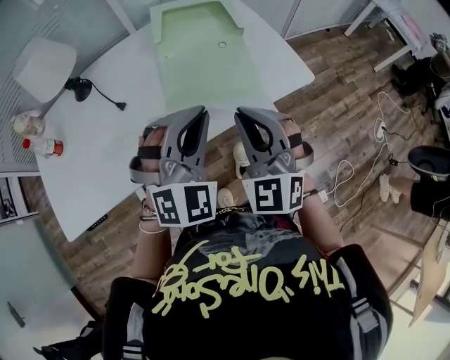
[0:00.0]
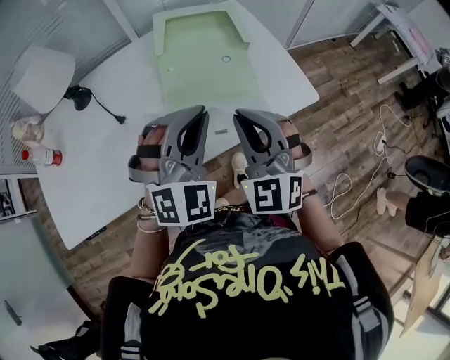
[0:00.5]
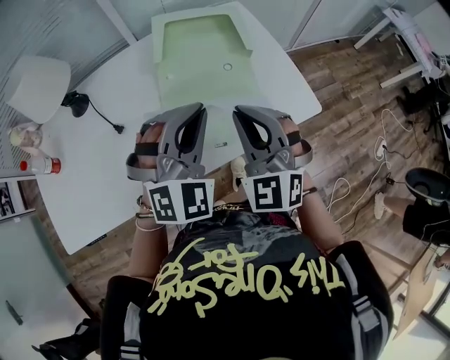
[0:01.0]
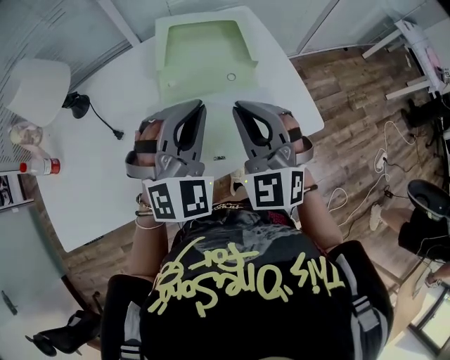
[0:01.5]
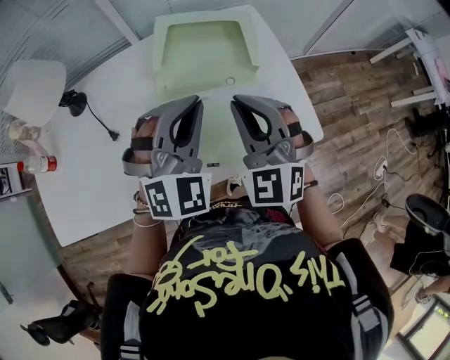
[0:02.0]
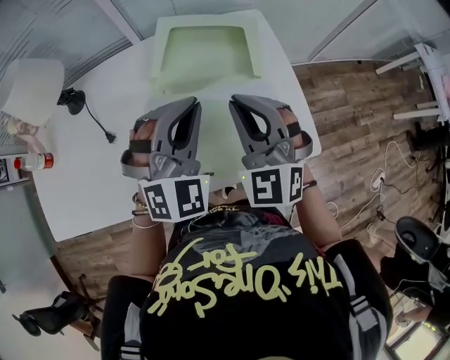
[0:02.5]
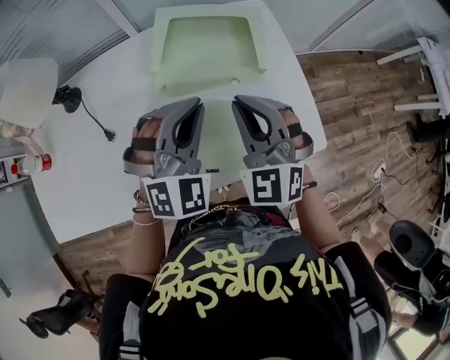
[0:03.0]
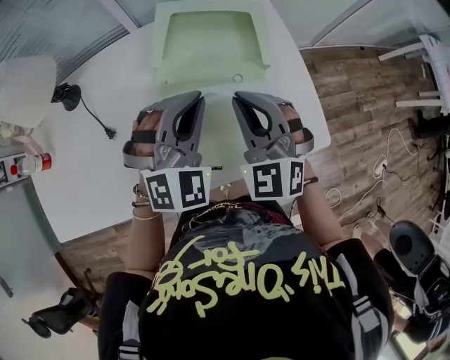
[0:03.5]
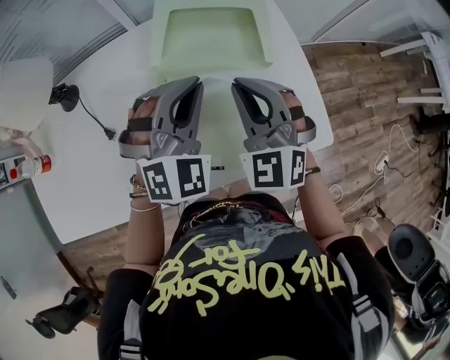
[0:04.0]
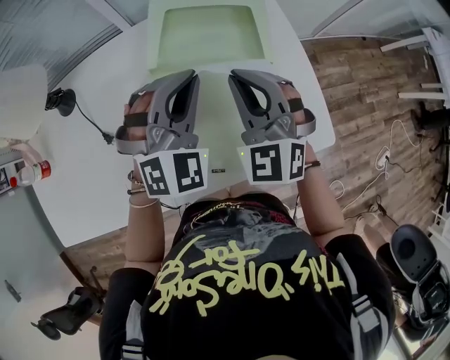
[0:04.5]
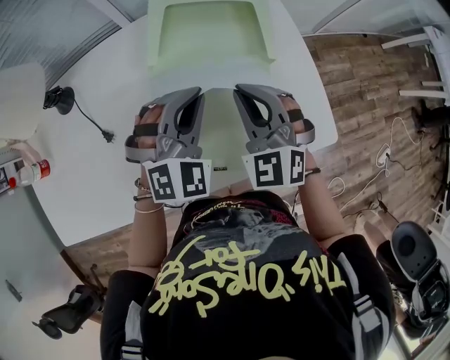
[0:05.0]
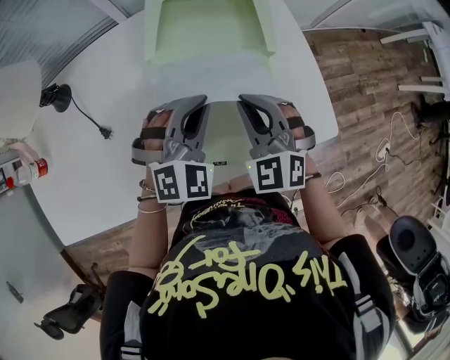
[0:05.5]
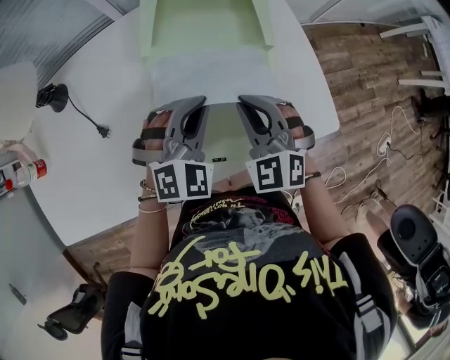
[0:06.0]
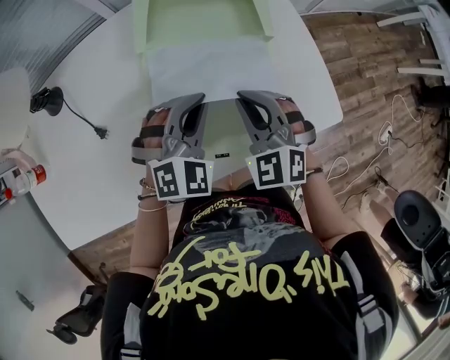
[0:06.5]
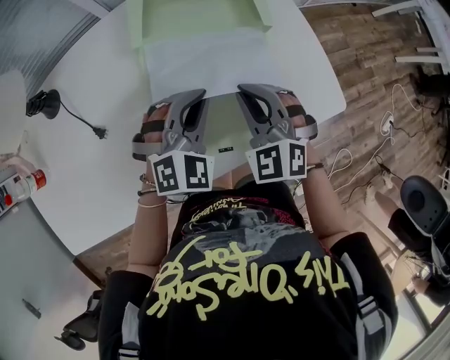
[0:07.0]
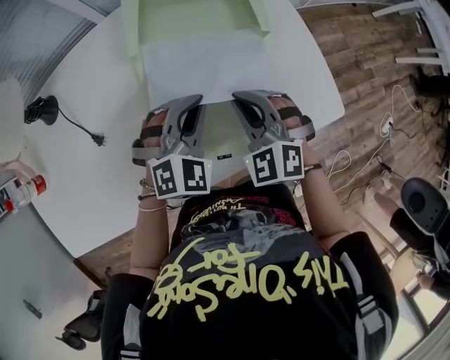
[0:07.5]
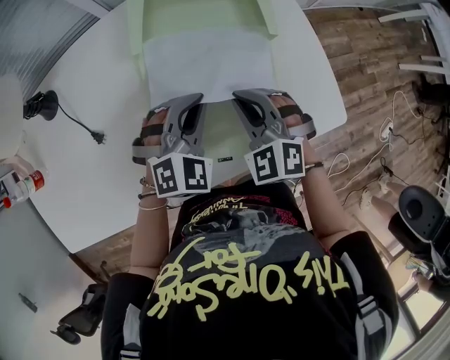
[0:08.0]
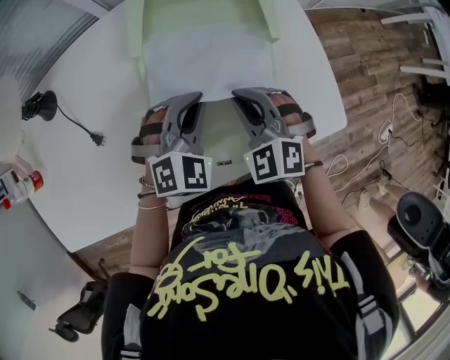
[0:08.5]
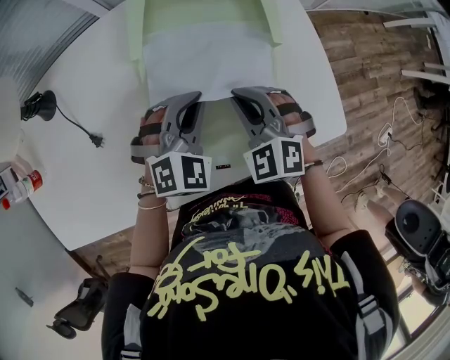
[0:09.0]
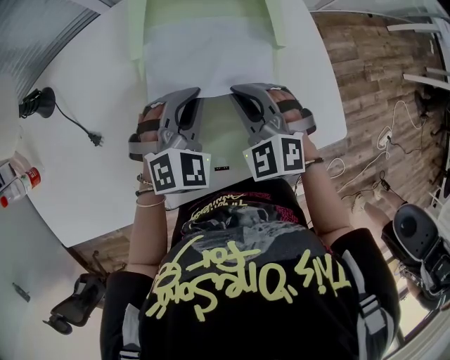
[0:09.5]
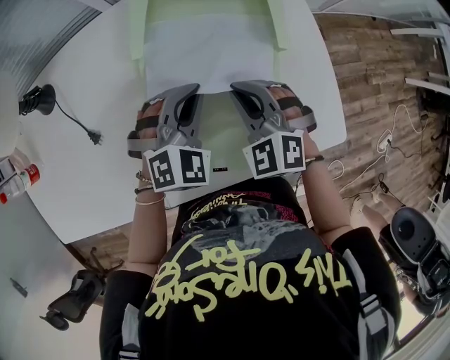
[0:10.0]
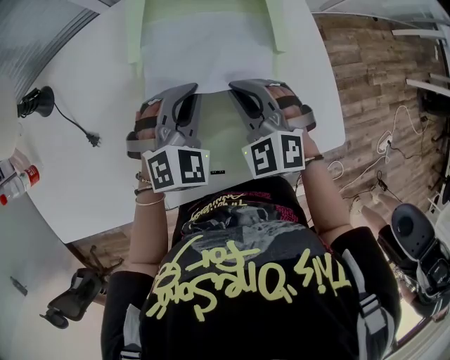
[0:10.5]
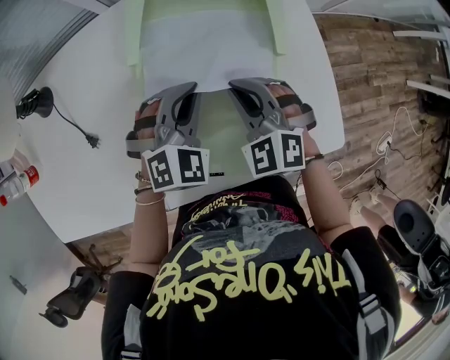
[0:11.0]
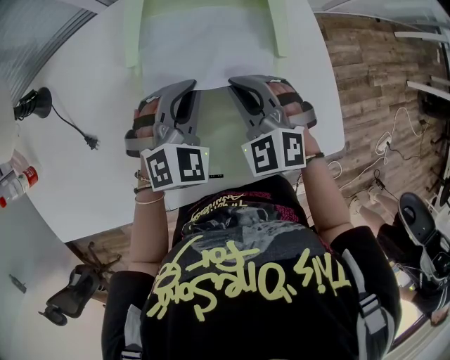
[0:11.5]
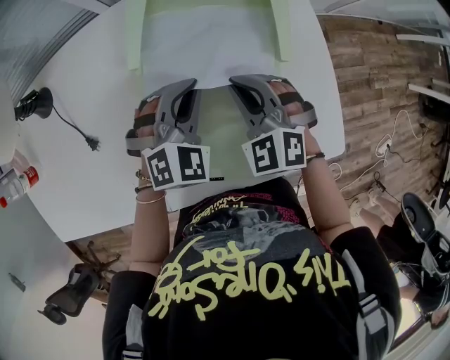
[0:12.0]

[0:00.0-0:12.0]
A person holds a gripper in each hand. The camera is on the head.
0:00.0 to 0:02.0: Both grippers travel together forward, roughly 20 cm.
0:02.0 to 0:04.0: Both grippers move forward, approximately 5 cm.
0:04.0 to 0:06.0: Both grippers travel together downward, roughly 10 cm.
0:06.0 to 0:08.0: The grippers move only a little.
0:08.0 to 0:10.0: The grippers make only small movements.
0:10.0 to 0:12.0: The grippers move only a little.

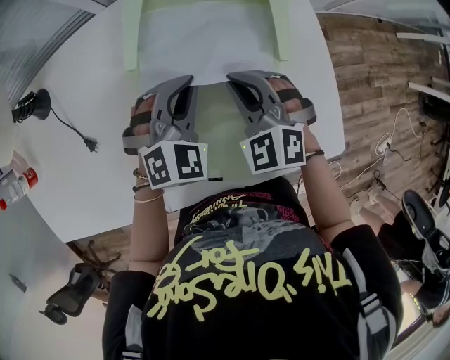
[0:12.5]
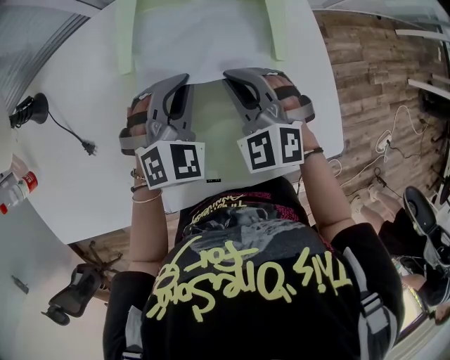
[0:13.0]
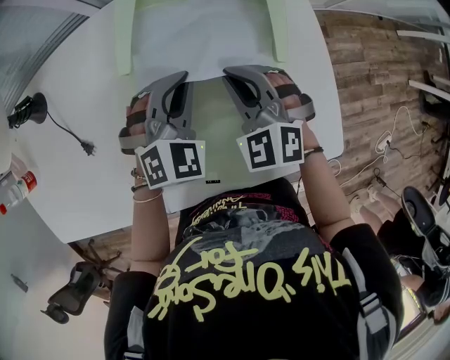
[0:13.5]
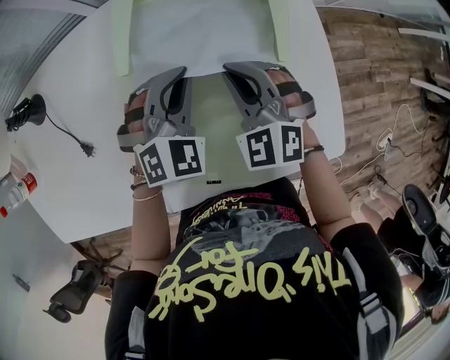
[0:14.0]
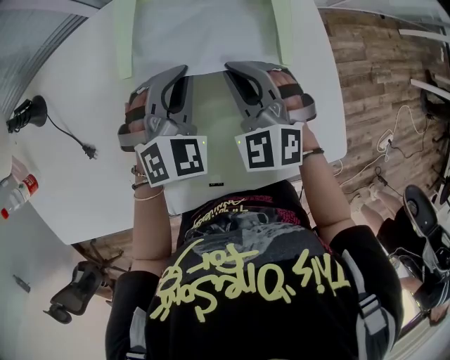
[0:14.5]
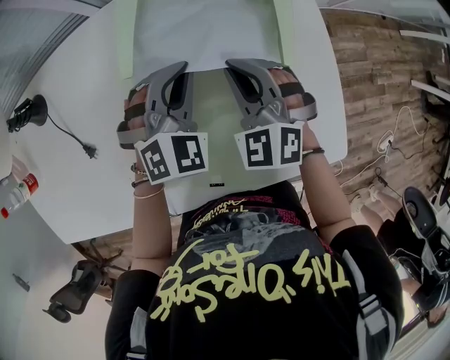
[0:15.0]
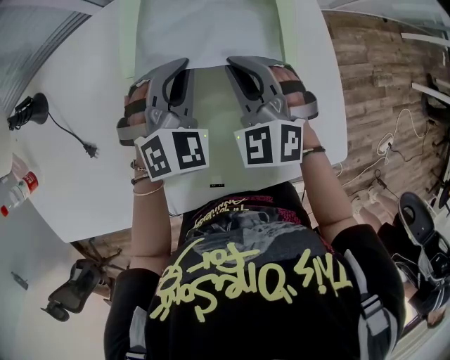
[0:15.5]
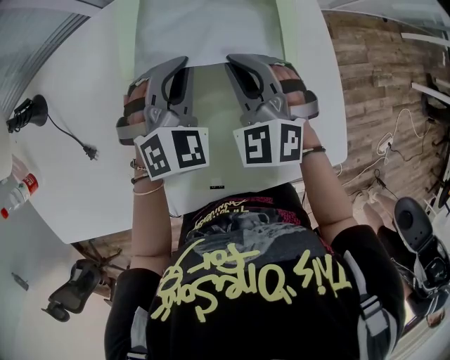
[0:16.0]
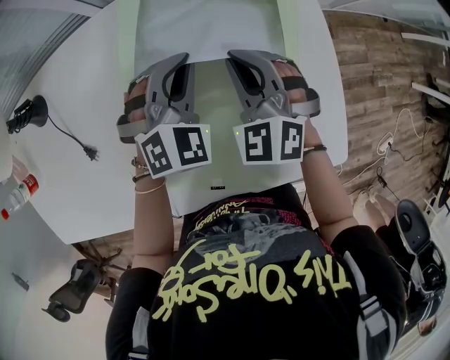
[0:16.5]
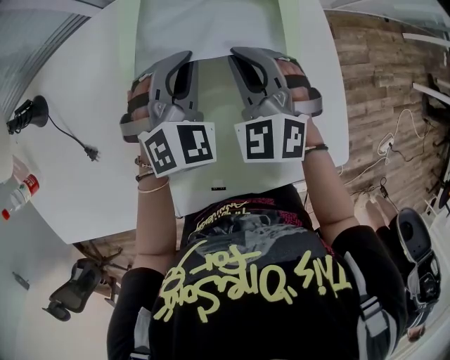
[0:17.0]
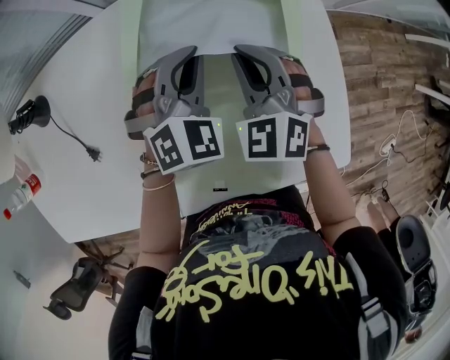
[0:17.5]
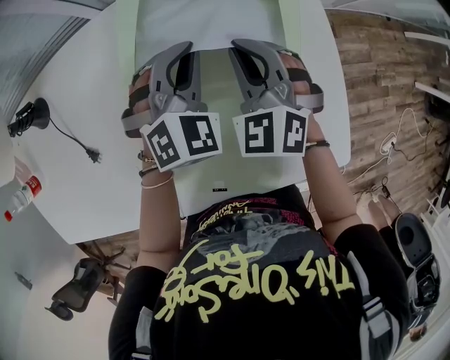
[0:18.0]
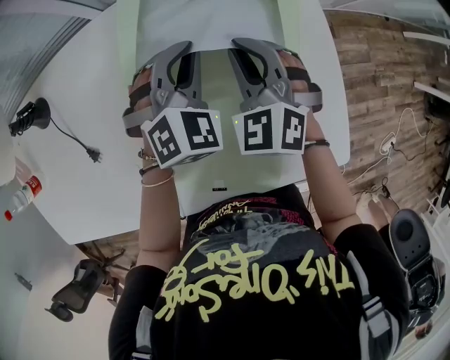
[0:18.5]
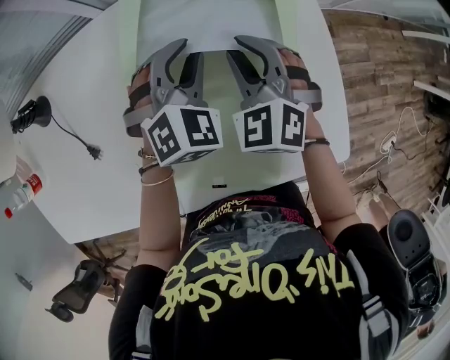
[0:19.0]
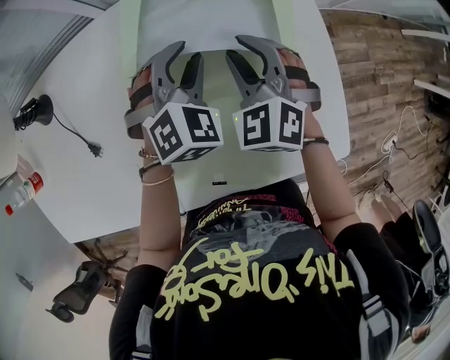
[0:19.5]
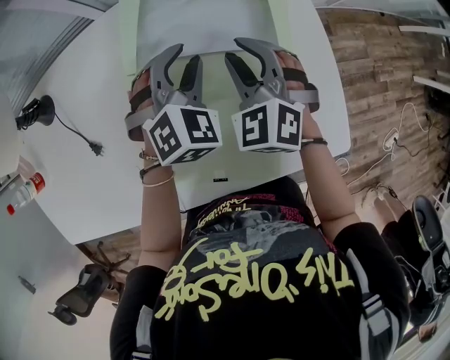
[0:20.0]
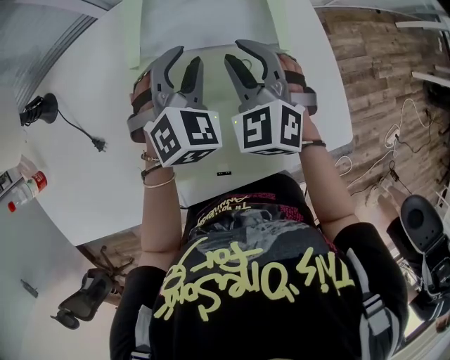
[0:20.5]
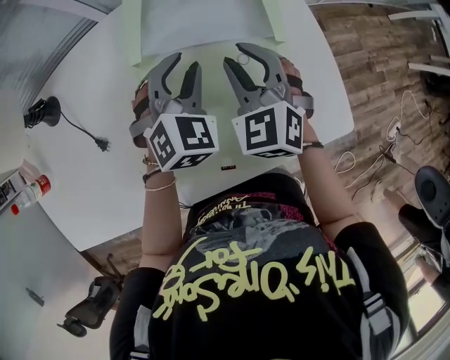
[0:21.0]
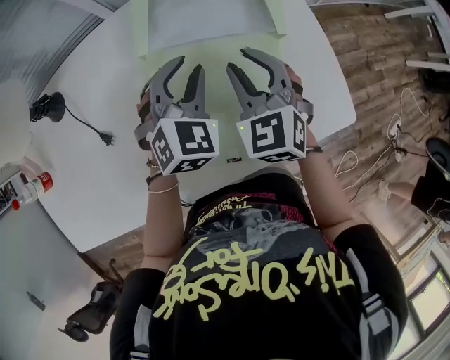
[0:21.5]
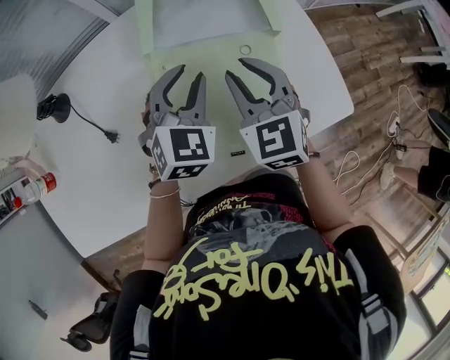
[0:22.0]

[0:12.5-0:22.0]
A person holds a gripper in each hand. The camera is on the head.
0:12.5 to 0:14.5: The grippers make only small movements.
0:14.5 to 0:18.0: There are only small adjustments of the grippers.
0:18.0 to 0:20.0: The right gripper opens up; the left gripper opens its fingers.
0:20.0 to 0:22.0: The grippers both shift backward by roughly 10 cm. The right gripper turns by some 30 degrees.

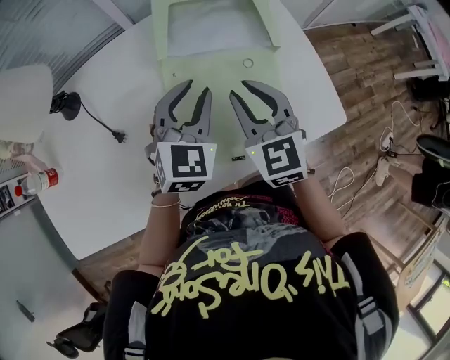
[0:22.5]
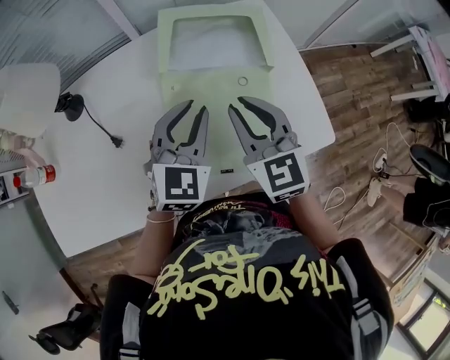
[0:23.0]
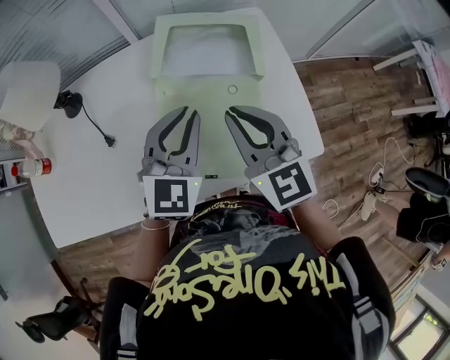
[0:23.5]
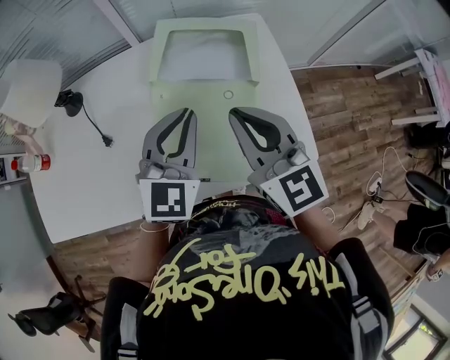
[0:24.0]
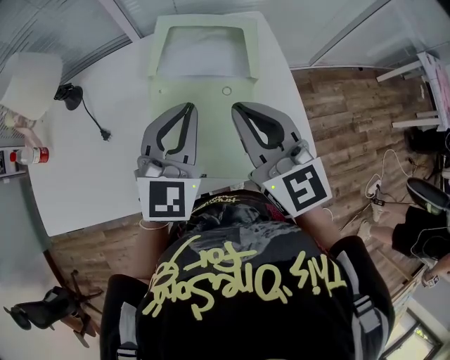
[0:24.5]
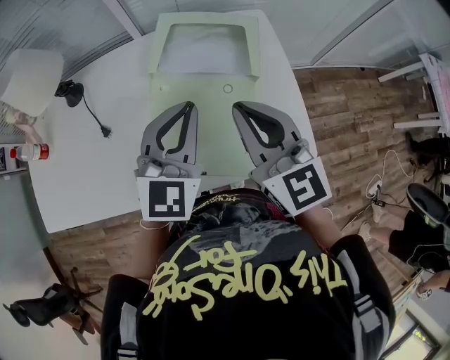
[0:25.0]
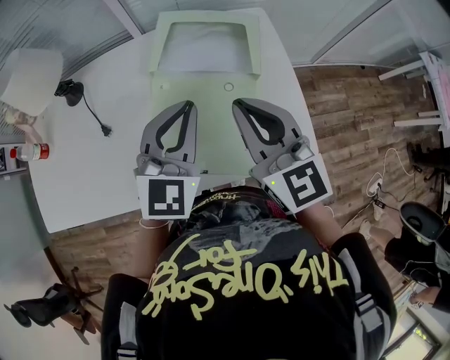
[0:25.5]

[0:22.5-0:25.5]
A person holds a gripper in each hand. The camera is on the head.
0:22.5 to 0:24.0: The left gripper is displaced upward by approximately 10 cm, and closes; the right gripper moves upward and to the right, roughly 10 cm, turns by some 30 degrees, and closes.
0:24.0 to 0:25.5: There are only small adjustments of the grippers.

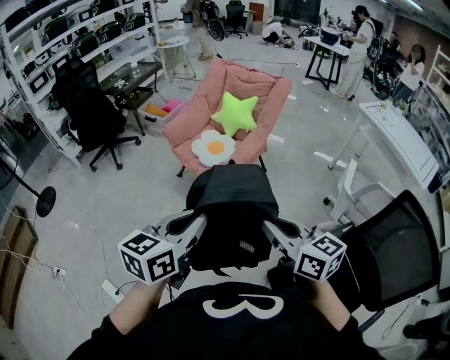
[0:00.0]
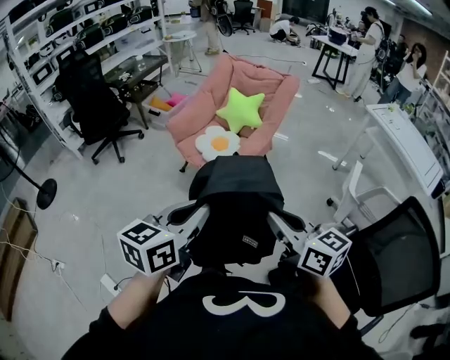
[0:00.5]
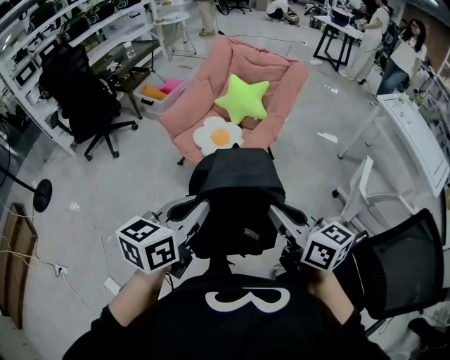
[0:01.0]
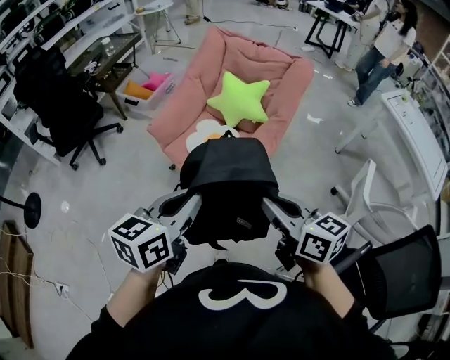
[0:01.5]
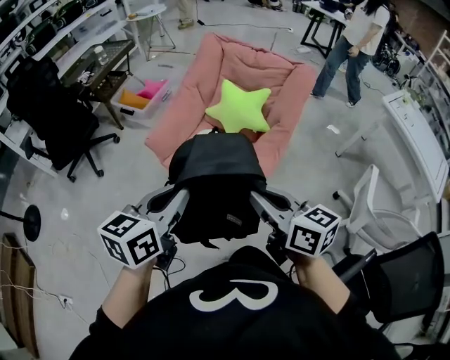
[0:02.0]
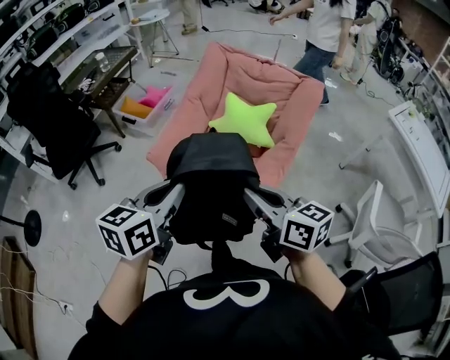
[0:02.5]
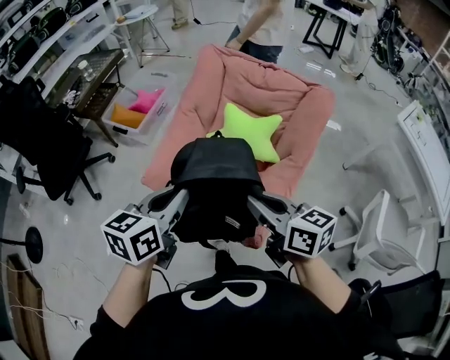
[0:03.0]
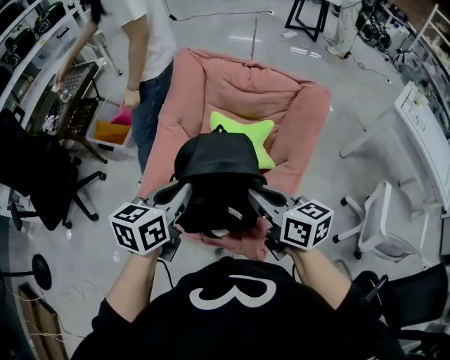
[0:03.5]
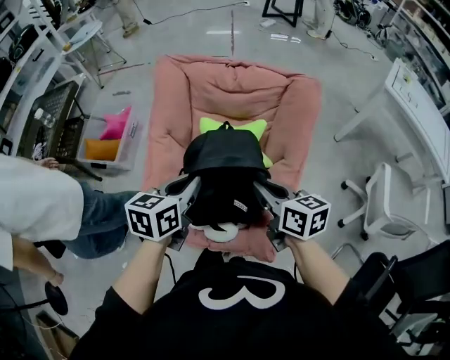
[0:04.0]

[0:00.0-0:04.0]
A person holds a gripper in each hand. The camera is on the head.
0:00.0 to 0:02.0: Both grippers are carried forward, roughly 40 cm.
0:02.0 to 0:04.0: The grippers both shift forward by roughly 40 cm. The left gripper changes its angle by about 20 degrees, while the right gripper changes its angle by approximately 30 degrees.
